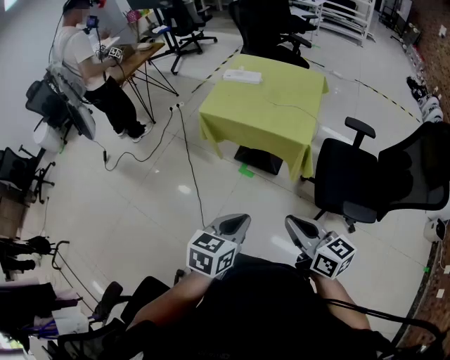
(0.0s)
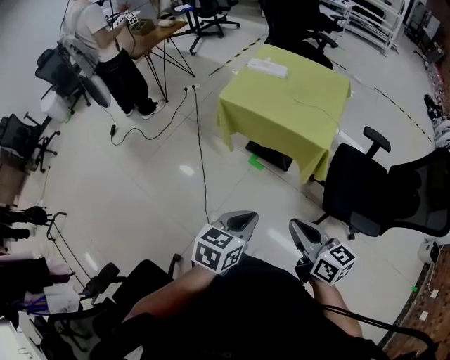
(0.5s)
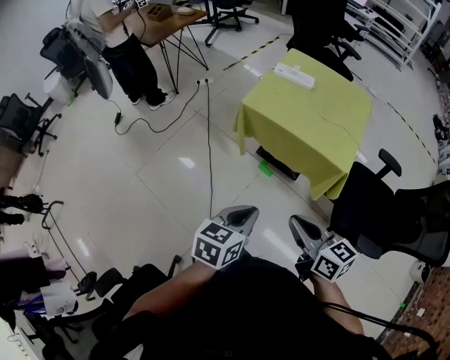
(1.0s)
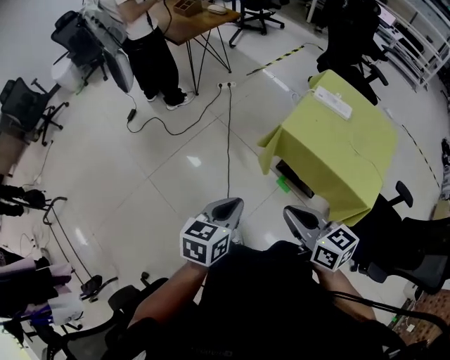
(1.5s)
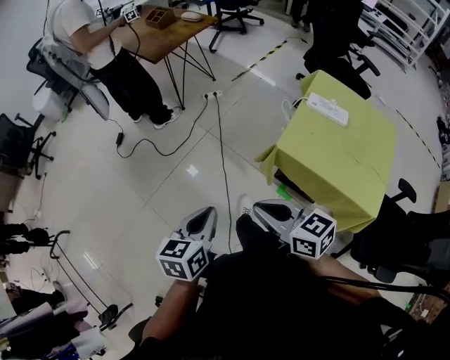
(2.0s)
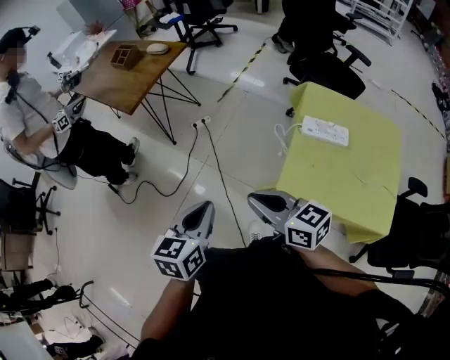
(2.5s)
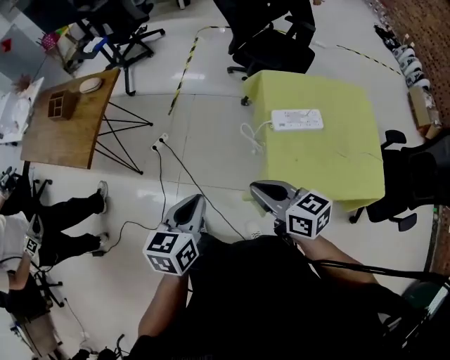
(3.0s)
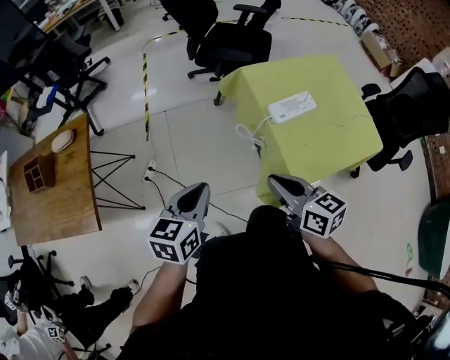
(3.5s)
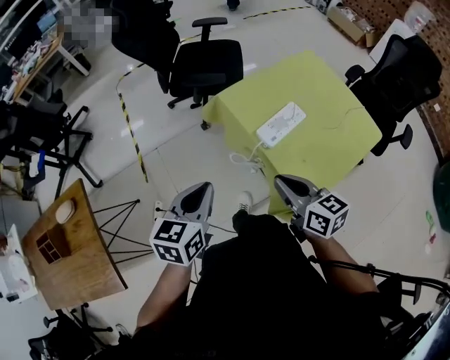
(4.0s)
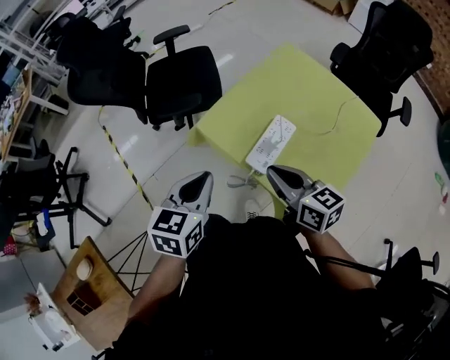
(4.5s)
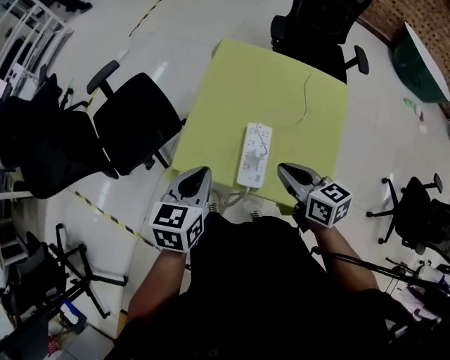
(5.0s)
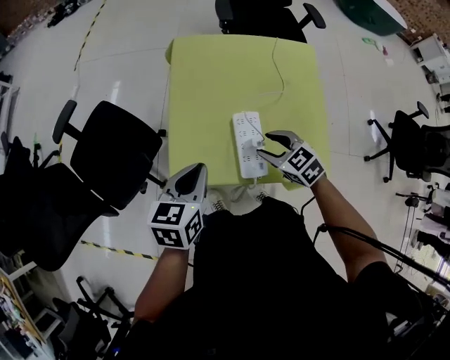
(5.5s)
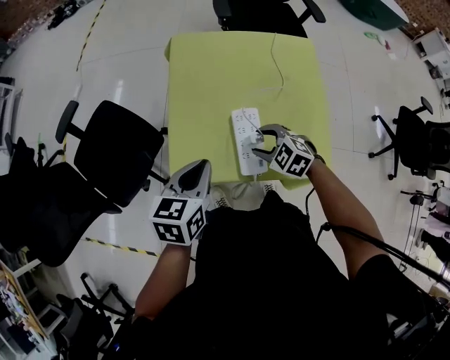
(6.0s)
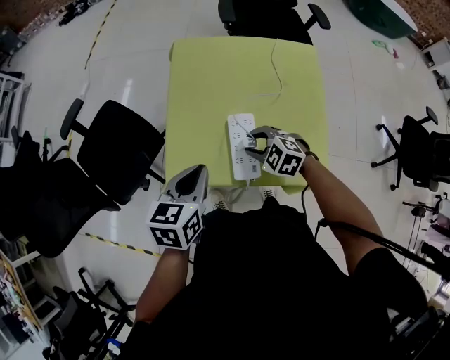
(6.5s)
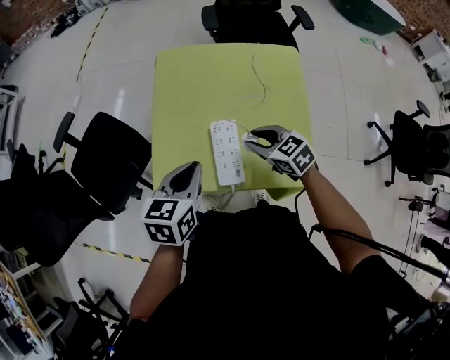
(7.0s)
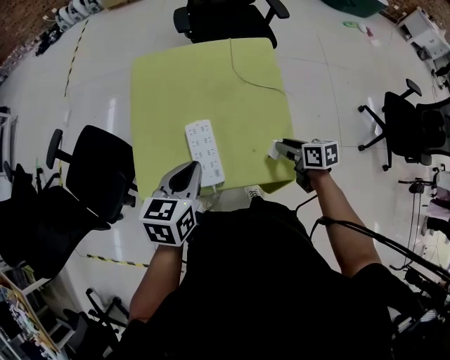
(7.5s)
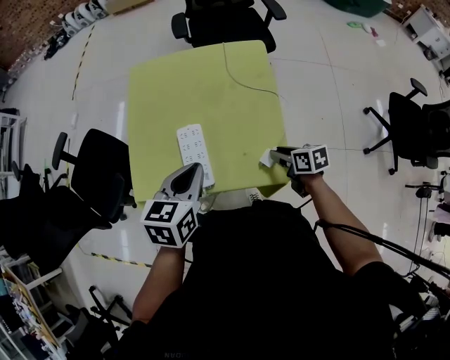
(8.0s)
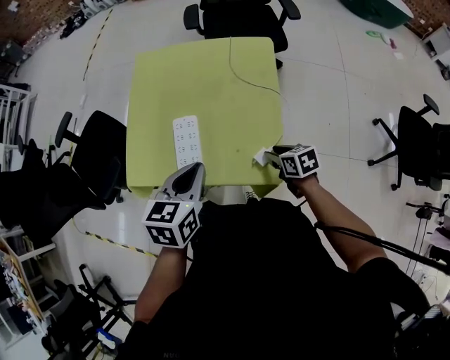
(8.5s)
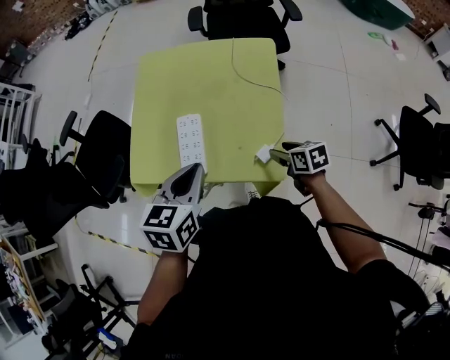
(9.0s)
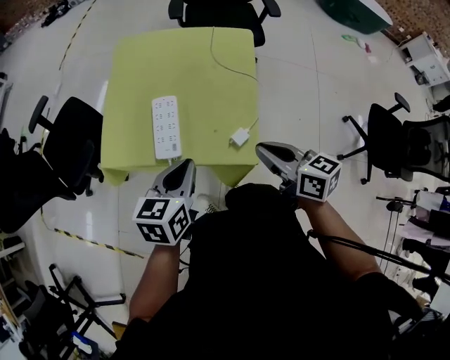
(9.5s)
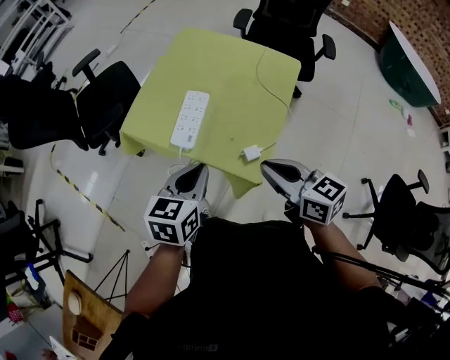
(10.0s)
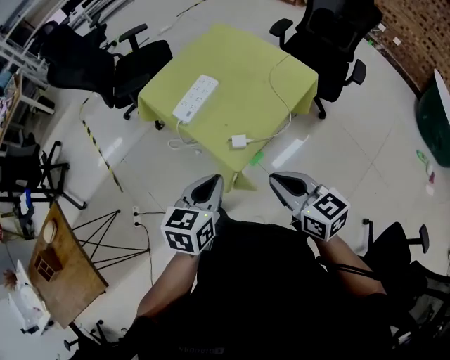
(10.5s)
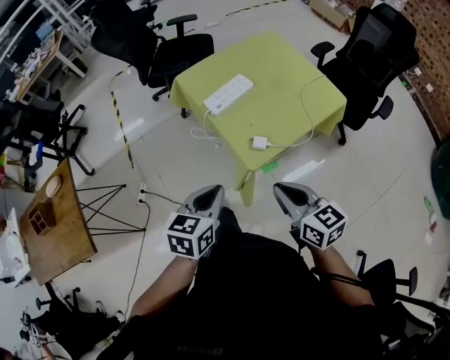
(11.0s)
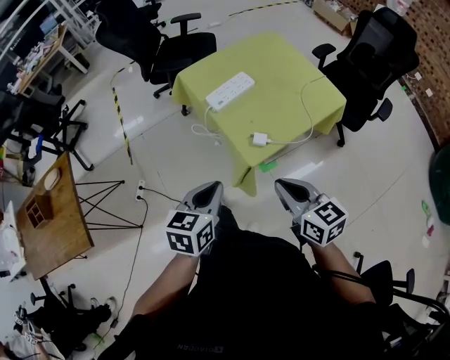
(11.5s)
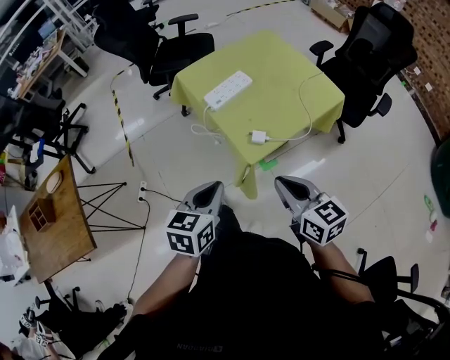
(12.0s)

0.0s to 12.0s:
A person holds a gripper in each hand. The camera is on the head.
0.0s to 2.0s: The pair of grippers is taken some 50 cm. The right gripper changes its angle by about 30 degrees; the left gripper turns by roughly 30 degrees.
2.0s to 4.0s: Both grippers are carried some 60 cm. The left gripper turns by some 70 degrees, while the right gripper turns by approximately 80 degrees.
4.0s to 6.0s: The right gripper changes place by approximately 30 cm, angles its fingers downward, by about 40 degrees, and opens, while the left gripper ends up approximately 35 cm from where it was, and swivels about 60 degrees.
6.0s to 8.0s: The grippers both shift to the right by approximately 20 cm. The right gripper rolls clockwise, seen from behind, by roughly 70 degrees, and closes its fingers.
8.0s to 10.0s: The right gripper is displaced upward by roughly 20 cm, turns by approximately 50 degrees, and closes up. Meanwhile the left gripper travels backward and to the right by roughly 15 cm, and swivels some 20 degrees.
10.0s to 12.0s: The right gripper changes place by about 15 cm, and turns by about 20 degrees. Meanwhile the left gripper shifts by approximately 20 cm, and changes its angle by some 30 degrees.

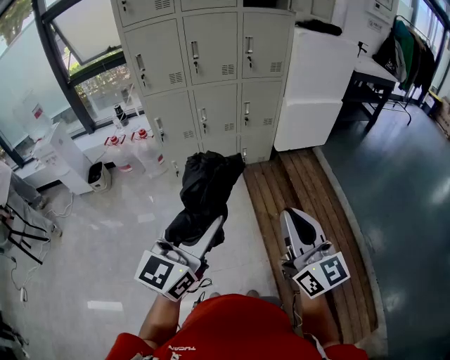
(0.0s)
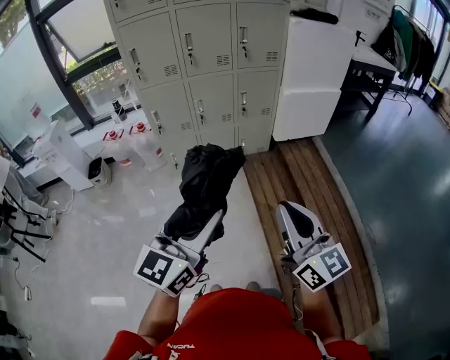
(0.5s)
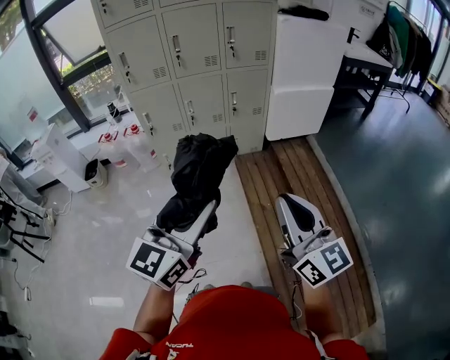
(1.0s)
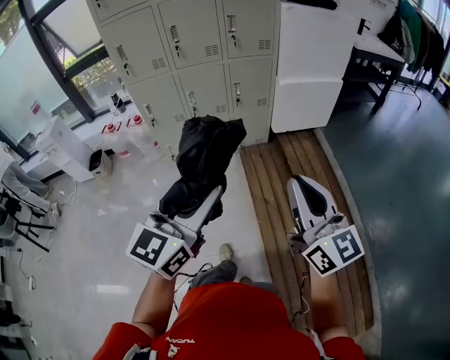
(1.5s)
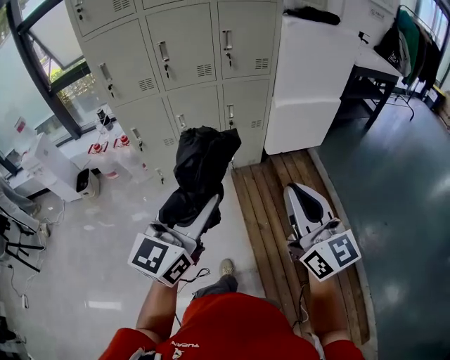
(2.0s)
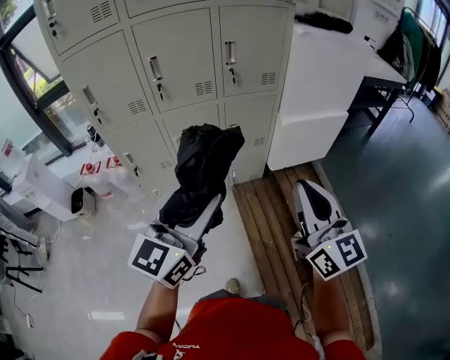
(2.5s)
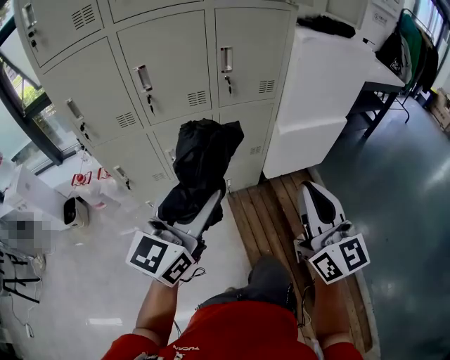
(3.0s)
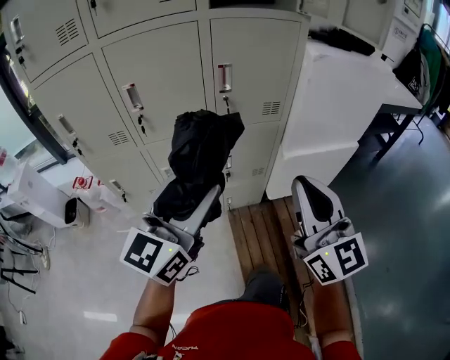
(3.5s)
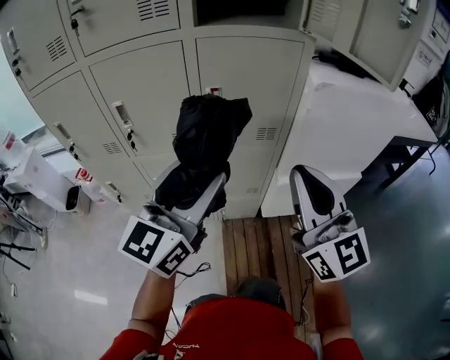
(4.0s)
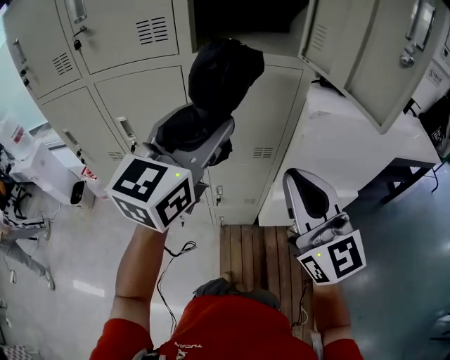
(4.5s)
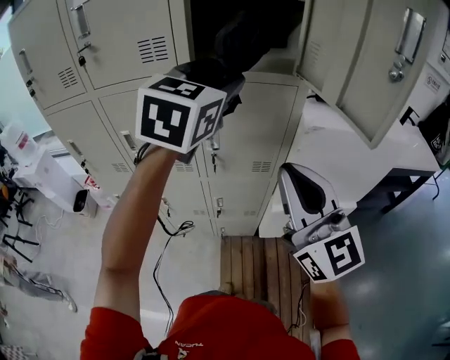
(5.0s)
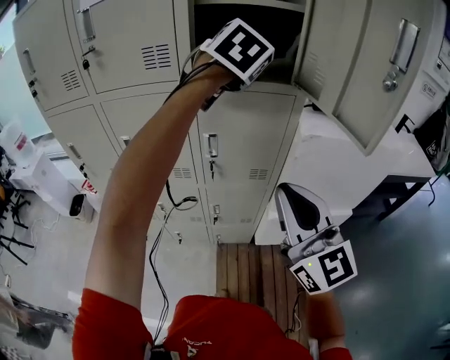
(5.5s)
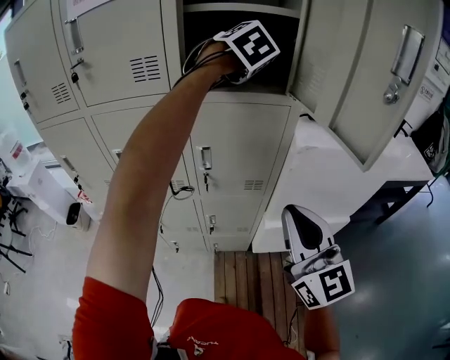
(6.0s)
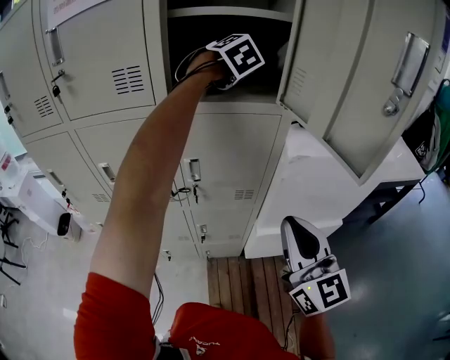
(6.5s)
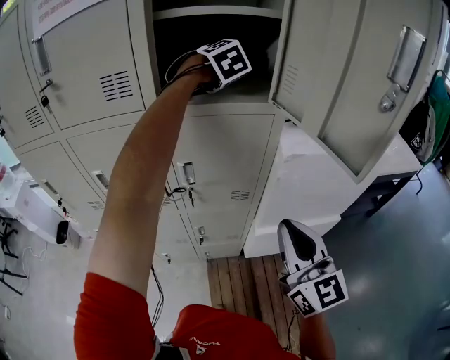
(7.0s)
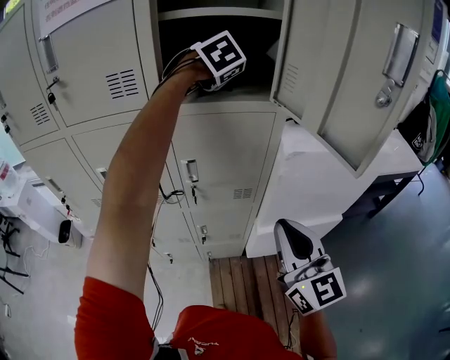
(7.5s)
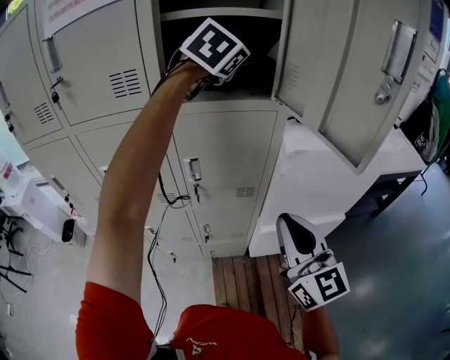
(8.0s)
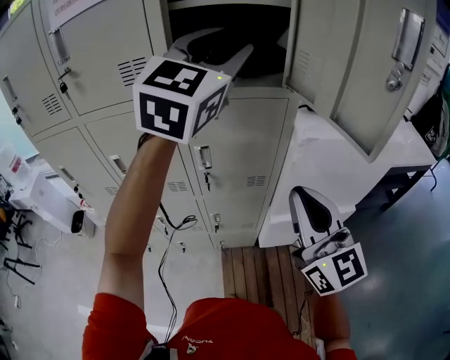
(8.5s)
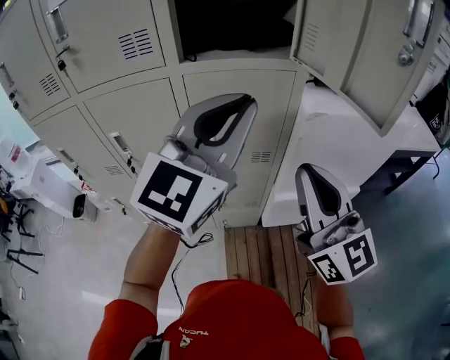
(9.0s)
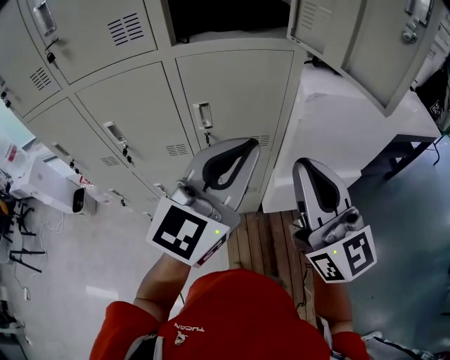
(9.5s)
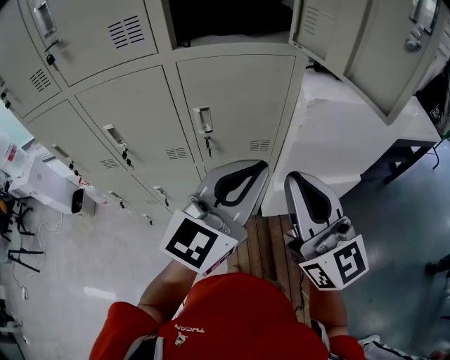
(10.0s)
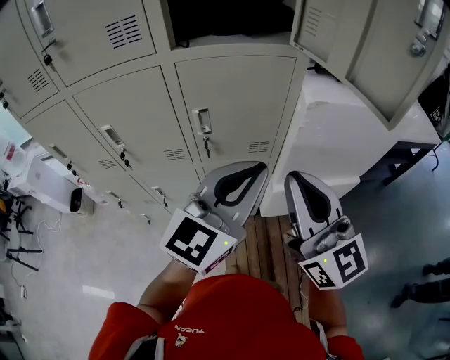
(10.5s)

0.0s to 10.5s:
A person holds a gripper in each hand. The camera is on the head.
0.0s to 2.0s: The grippers both shift forward and to the right by about 20 cm.
2.0s to 4.0s: Both grippers are carried forward, roughly 40 cm.
4.0s to 6.5s: The left gripper heads forward and upward, covering about 40 cm, and tilts its fingers about 40 degrees downward. Meanwhile the right gripper is displaced to the right and forward by about 10 cm.
6.5s to 8.5s: The left gripper travels backward and upward by approximately 25 cm, angles its fingers upward, by about 40 degrees, and opens and closes again.
8.5s to 10.5s: The left gripper travels downward and backward by roughly 30 cm, changes its angle by about 30 degrees, and closes.

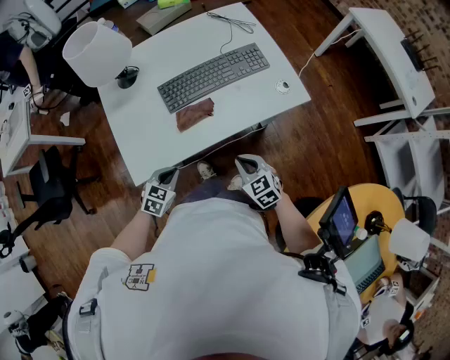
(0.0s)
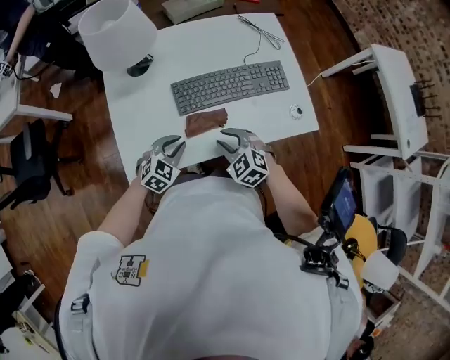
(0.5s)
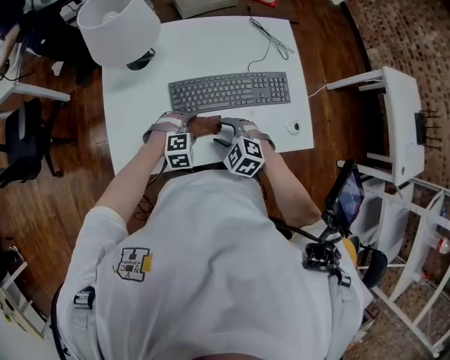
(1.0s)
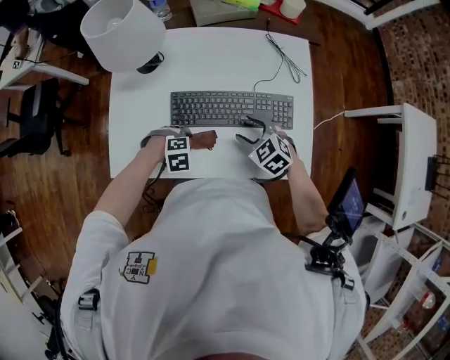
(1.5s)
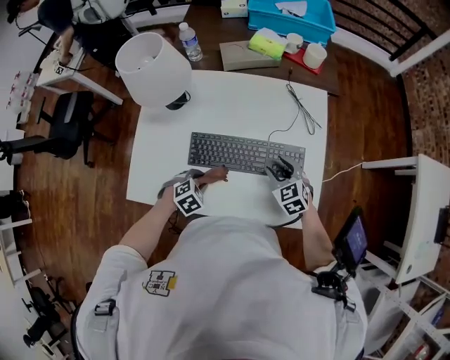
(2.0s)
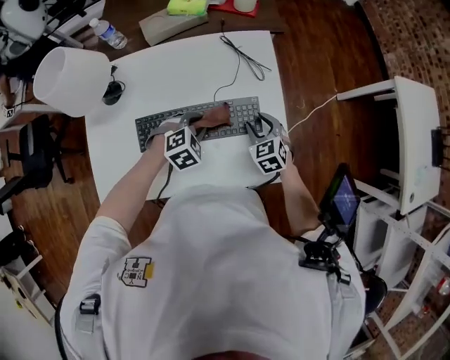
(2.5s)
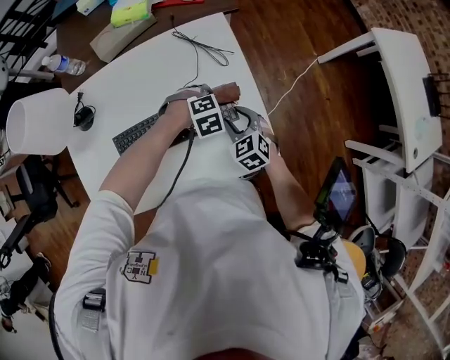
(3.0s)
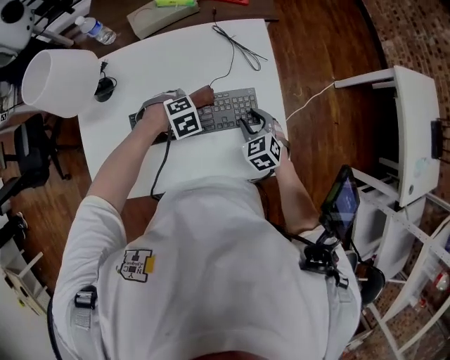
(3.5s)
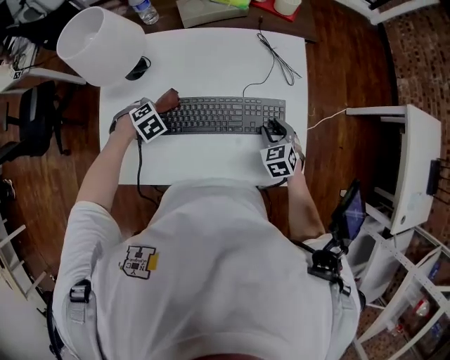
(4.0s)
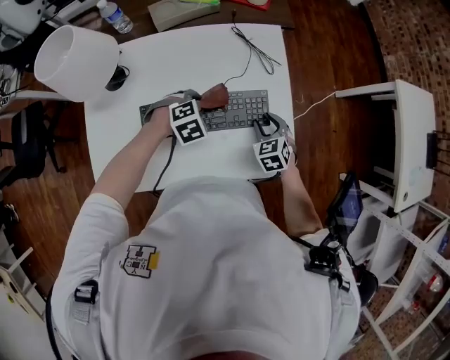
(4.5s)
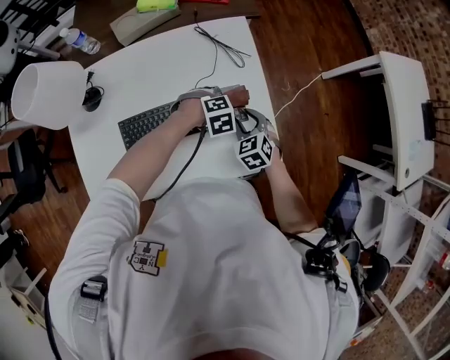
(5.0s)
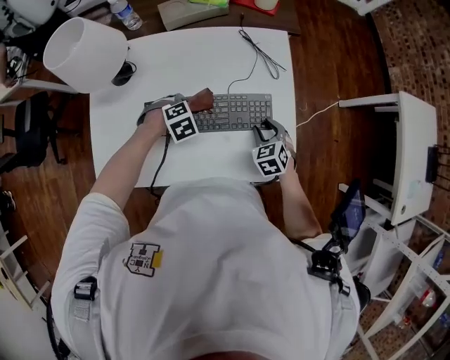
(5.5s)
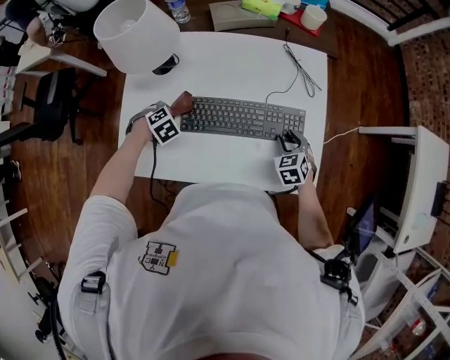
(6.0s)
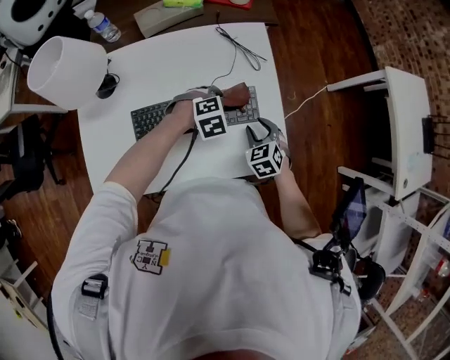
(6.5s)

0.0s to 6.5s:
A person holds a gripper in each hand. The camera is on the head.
0.0s to 2.0s: The right gripper ends up some 35 cm from where it was, changes its angle by roughly 30 degrees, and opens its fingers; the left gripper shifts by roughly 20 cm, rotates approximately 20 degrees, and opens, then closes again.
2.0s to 4.5s: The right gripper changes place by some 10 cm, and rotates about 20 degrees; the left gripper swings up and down, approximately 5 cm each way, with 2 reversals, and changes its angle by about 20 degrees.
